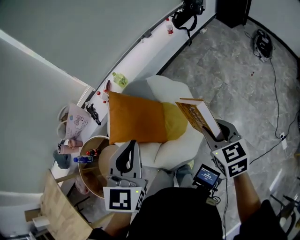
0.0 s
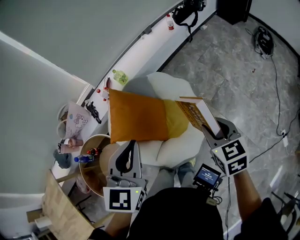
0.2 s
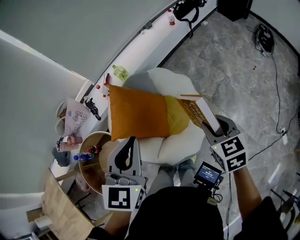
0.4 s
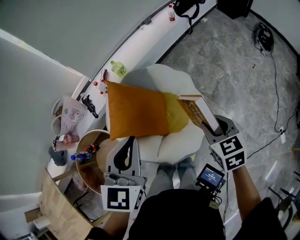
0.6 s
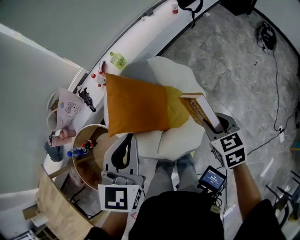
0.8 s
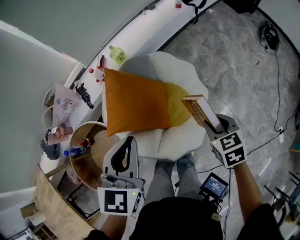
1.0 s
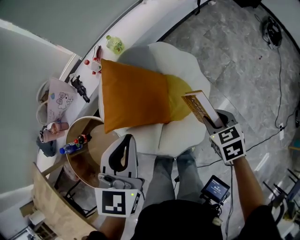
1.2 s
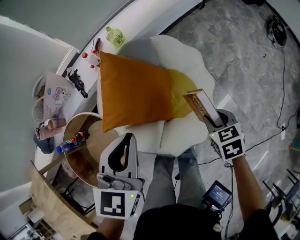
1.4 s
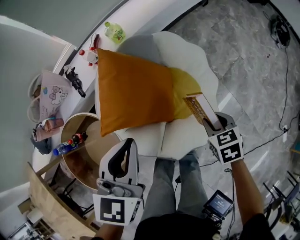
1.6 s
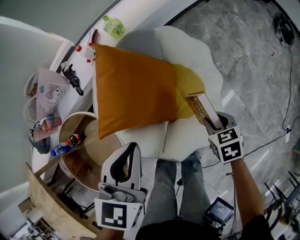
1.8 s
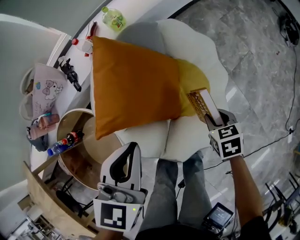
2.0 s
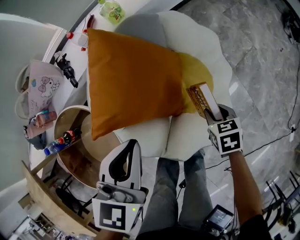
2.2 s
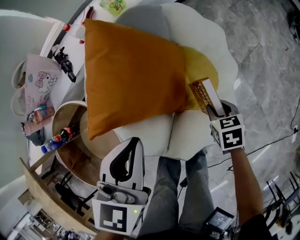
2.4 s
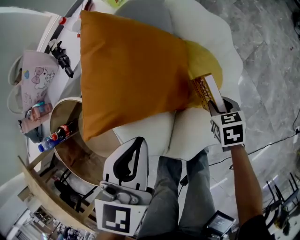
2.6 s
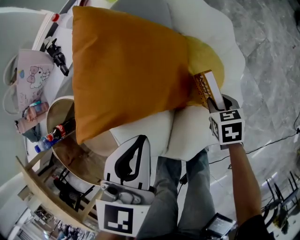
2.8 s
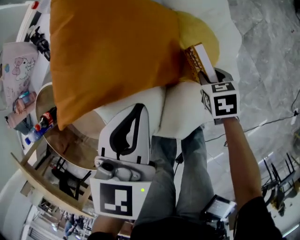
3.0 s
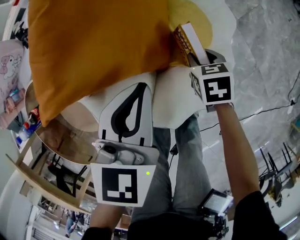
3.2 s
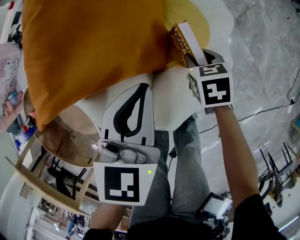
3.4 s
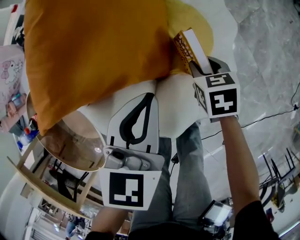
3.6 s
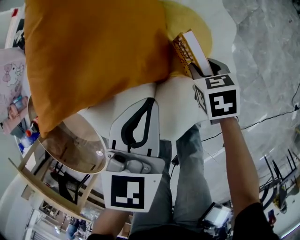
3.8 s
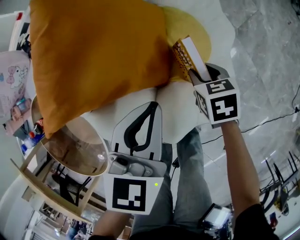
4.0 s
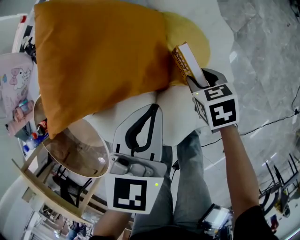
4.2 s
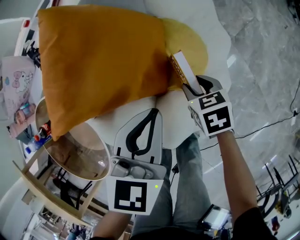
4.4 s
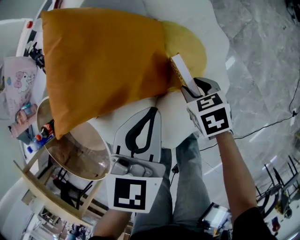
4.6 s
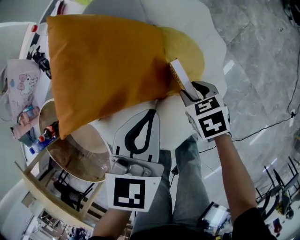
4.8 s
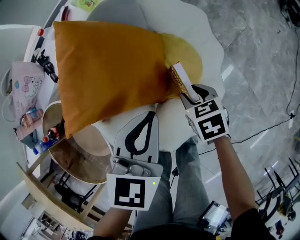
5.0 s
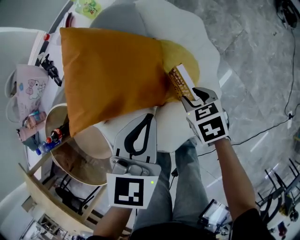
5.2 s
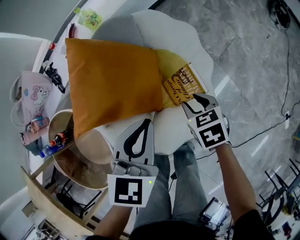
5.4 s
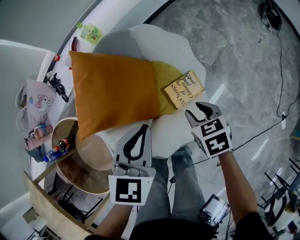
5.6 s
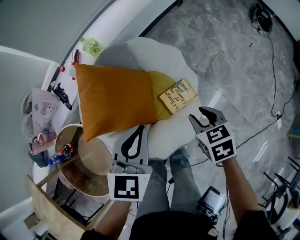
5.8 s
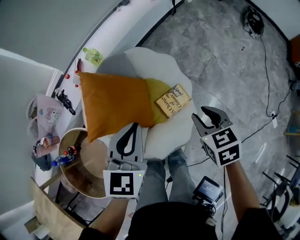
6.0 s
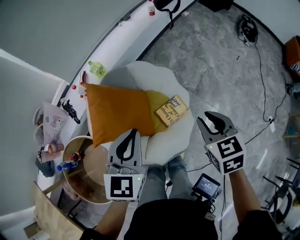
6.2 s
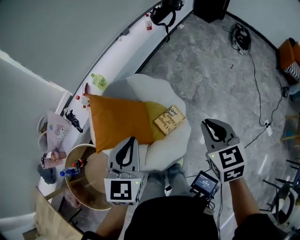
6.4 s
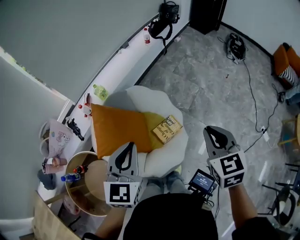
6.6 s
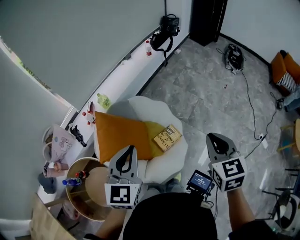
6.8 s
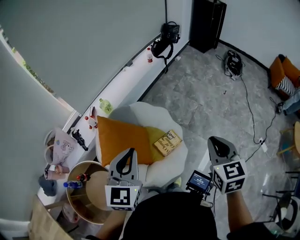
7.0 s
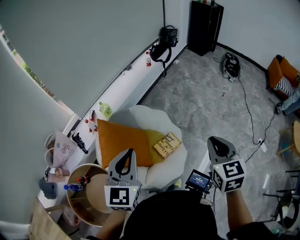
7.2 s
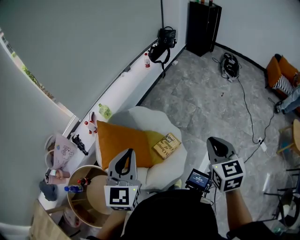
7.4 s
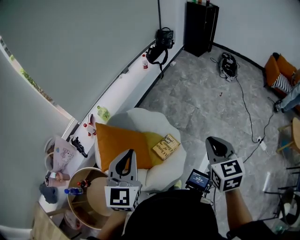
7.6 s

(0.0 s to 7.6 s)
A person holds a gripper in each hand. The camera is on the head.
0.0 s - 1.6 s: Both grippers move downward and to the left, some 30 cm. The right gripper rotates some 30 degrees.
1.6 s - 3.0 s: Both grippers move downward, some 25 cm.
3.0 s - 4.6 s: The left gripper goes some 5 cm to the right.
4.6 s - 6.0 s: Both grippers move upward, about 30 cm. The right gripper turns by approximately 20 degrees.
6.0 s - 7.6 s: Both grippers move upward, roughly 20 cm. The right gripper rotates about 30 degrees, and closes.

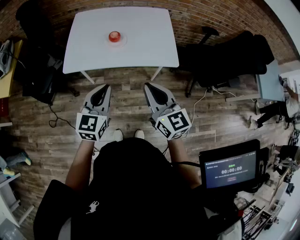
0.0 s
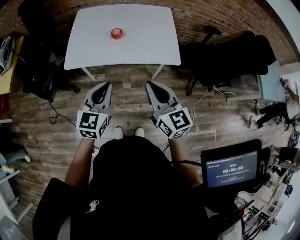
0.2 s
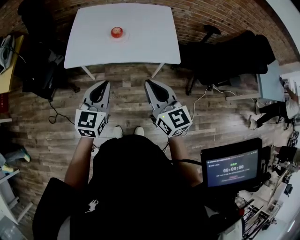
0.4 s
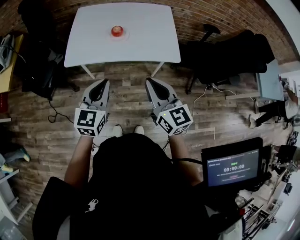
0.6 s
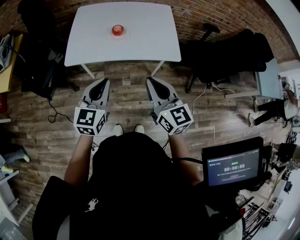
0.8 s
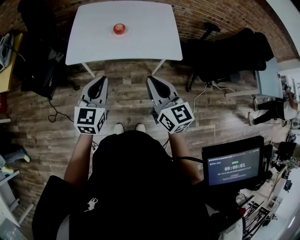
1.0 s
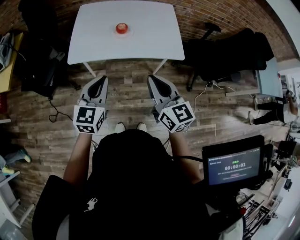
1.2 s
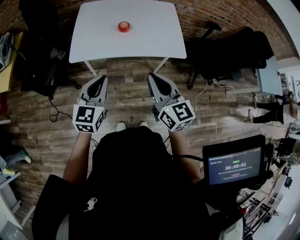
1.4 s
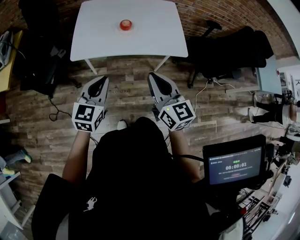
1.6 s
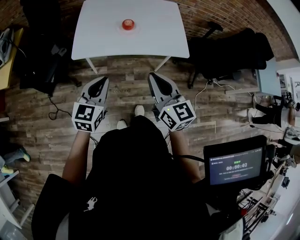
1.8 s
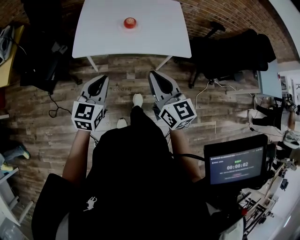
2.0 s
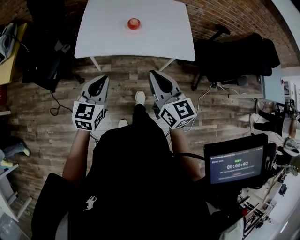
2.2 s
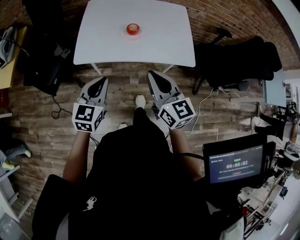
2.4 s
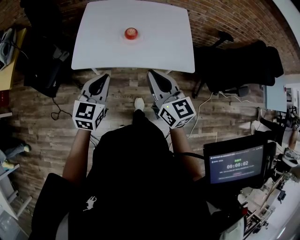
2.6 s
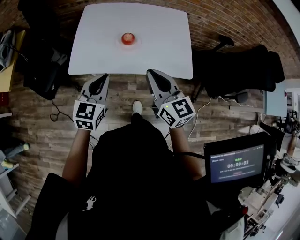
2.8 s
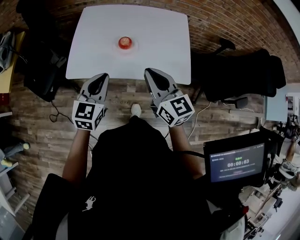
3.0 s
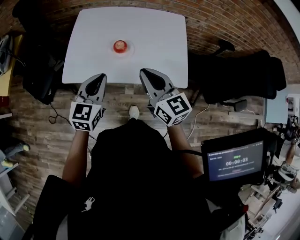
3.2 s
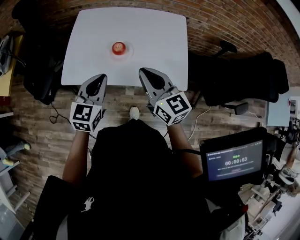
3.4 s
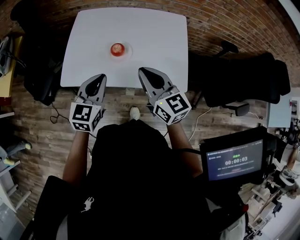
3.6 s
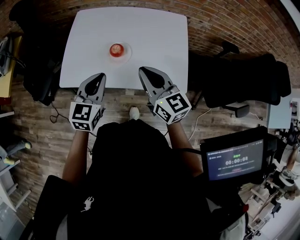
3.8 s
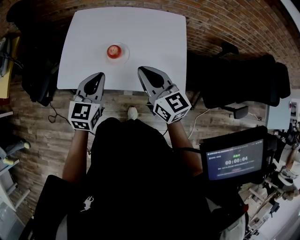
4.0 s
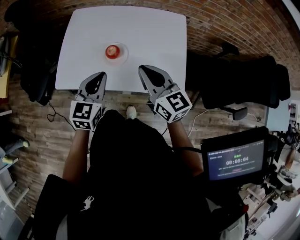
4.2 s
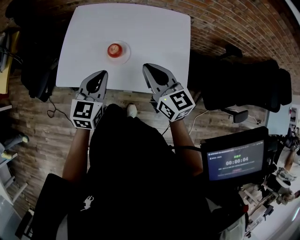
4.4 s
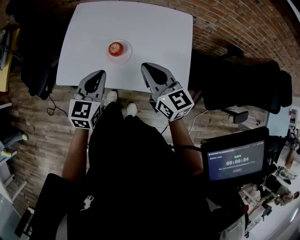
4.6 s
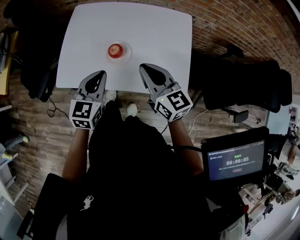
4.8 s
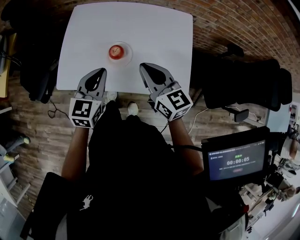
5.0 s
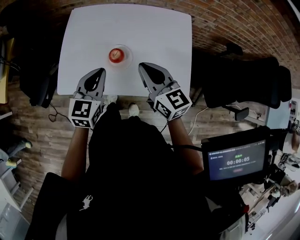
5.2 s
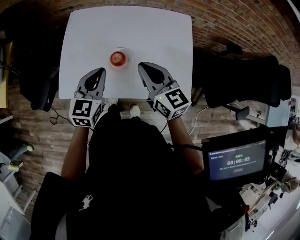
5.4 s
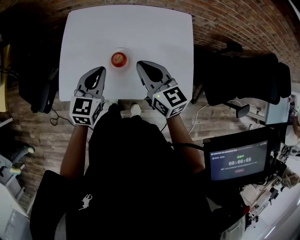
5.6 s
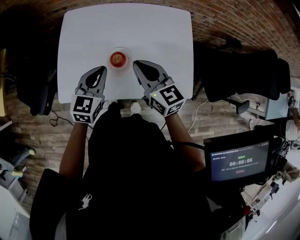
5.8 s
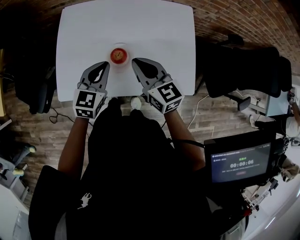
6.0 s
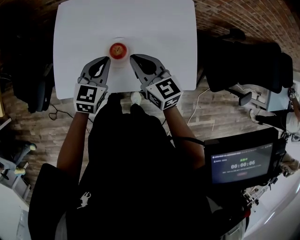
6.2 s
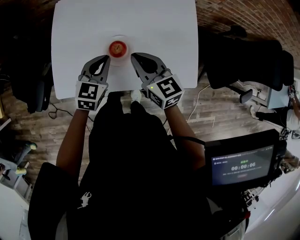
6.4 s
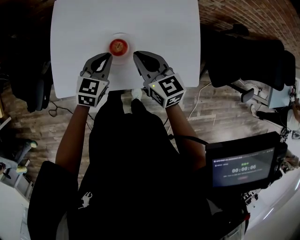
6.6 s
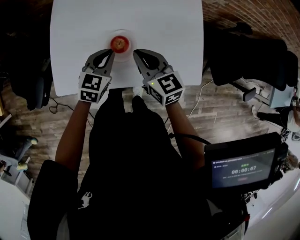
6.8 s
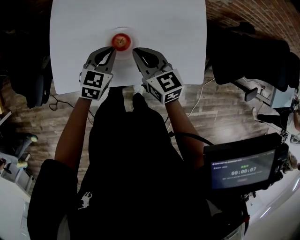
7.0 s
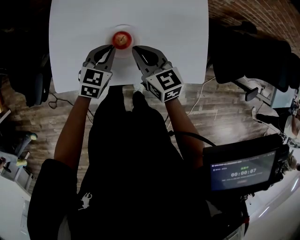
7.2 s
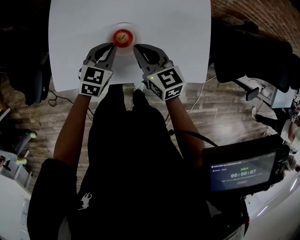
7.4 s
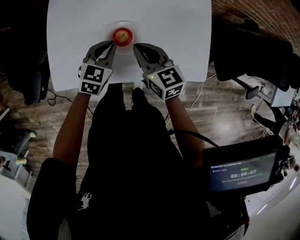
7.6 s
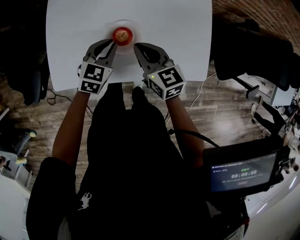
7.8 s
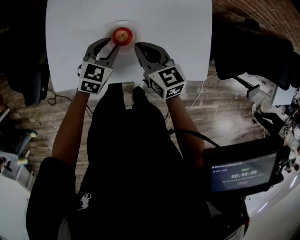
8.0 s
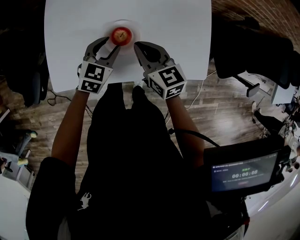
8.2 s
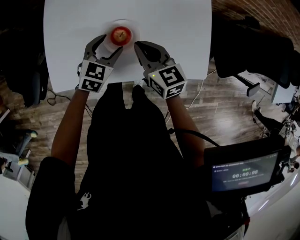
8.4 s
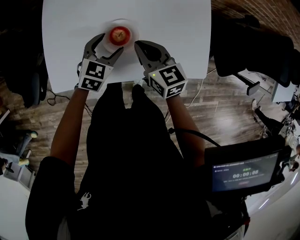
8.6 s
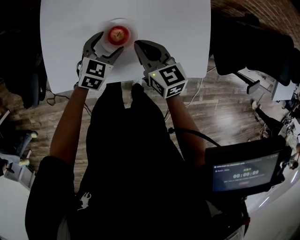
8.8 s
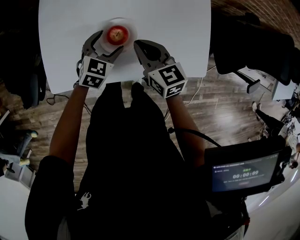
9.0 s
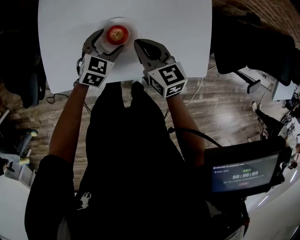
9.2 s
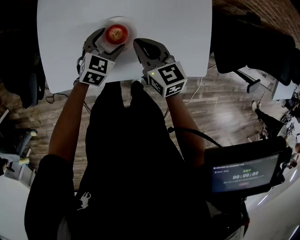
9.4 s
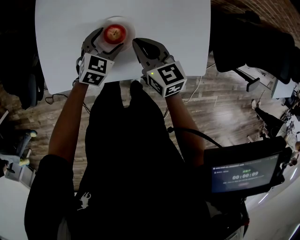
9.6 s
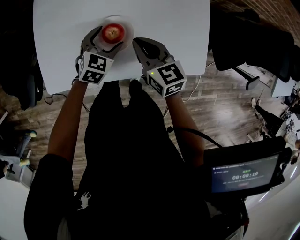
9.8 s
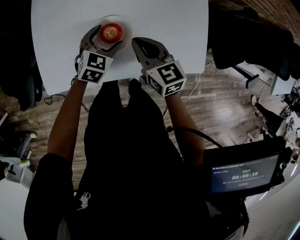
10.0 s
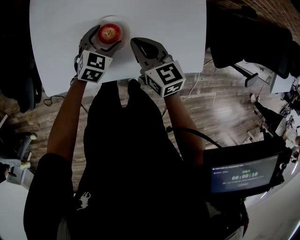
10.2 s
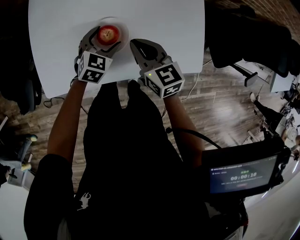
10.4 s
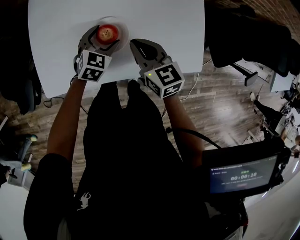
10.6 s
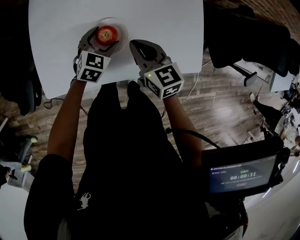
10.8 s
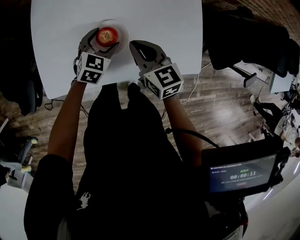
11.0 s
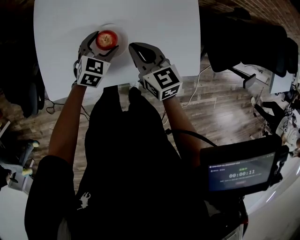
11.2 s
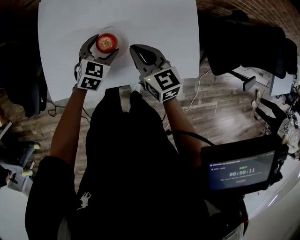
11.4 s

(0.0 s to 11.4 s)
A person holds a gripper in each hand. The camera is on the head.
0.0 s - 1.4 s: Both grippers move to the left, roughly 10 cm.
1.4 s - 2.8 s: Both grippers move forward, approximately 15 cm.
2.8 s - 4.2 s: Both grippers move forward and to the right, some 15 cm.
4.2 s - 5.6 s: The grippers both shift forward by about 10 cm.
5.6 s - 7.2 s: Both grippers travel together downward, about 15 cm.
7.2 s - 8.6 s: The left gripper opens.
8.6 s - 11.4 s: The grippers move only a little.

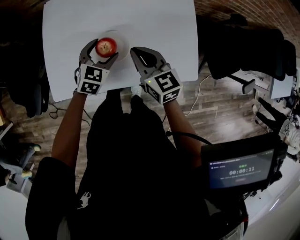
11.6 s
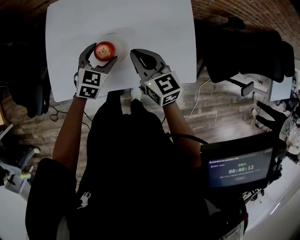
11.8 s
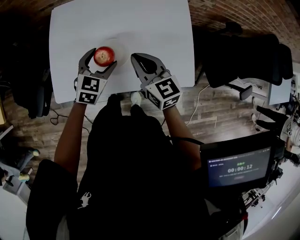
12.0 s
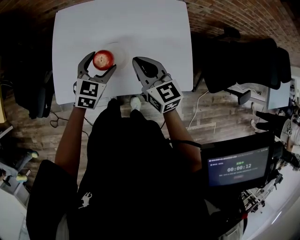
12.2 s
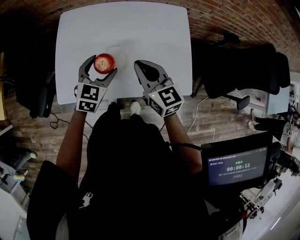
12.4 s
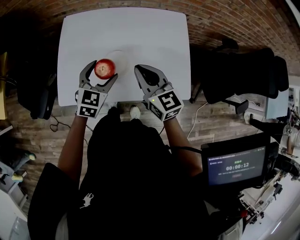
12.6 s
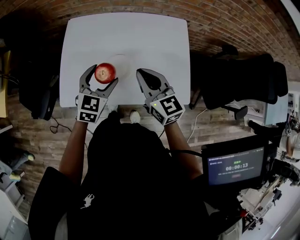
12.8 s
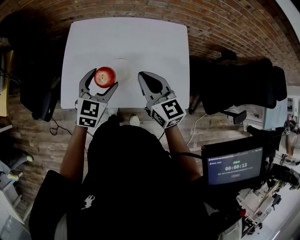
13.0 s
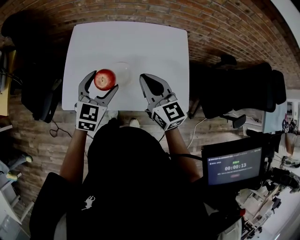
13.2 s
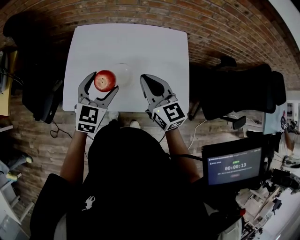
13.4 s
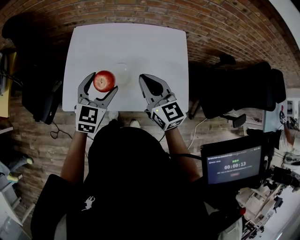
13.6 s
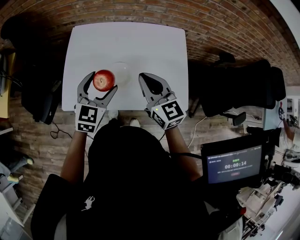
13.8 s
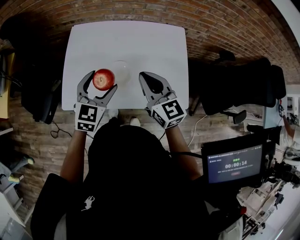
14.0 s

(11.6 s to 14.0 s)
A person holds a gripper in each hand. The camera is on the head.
11.6 s - 12.8 s: The left gripper goes approximately 15 cm upward and backward, while the right gripper goes some 10 cm upward.
12.8 s - 14.0 s: The grippers move only a little.

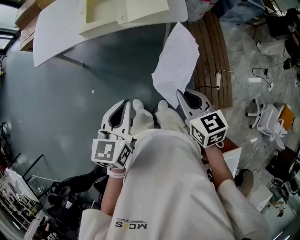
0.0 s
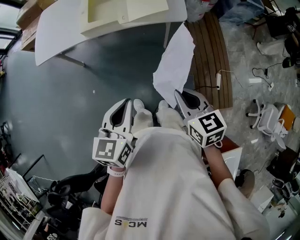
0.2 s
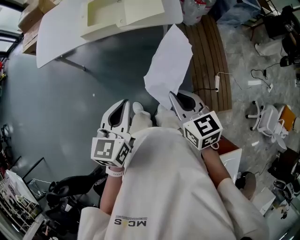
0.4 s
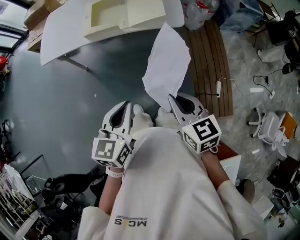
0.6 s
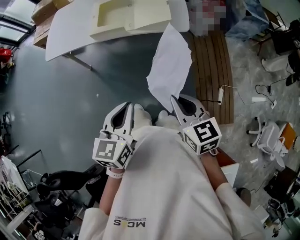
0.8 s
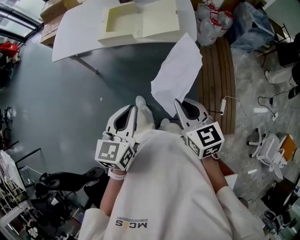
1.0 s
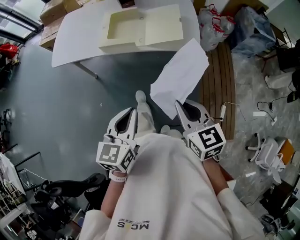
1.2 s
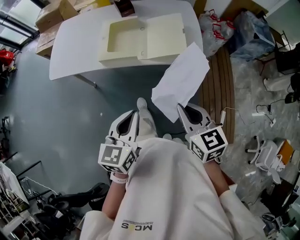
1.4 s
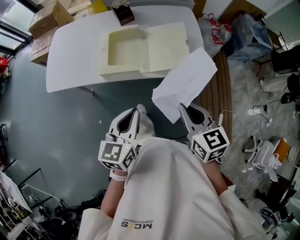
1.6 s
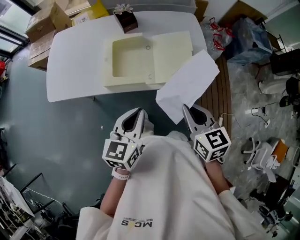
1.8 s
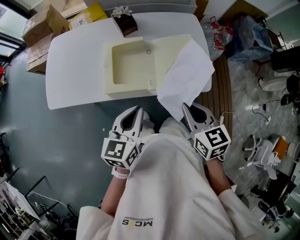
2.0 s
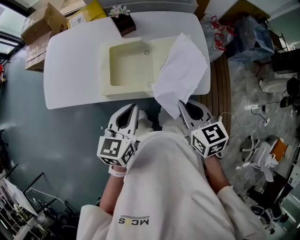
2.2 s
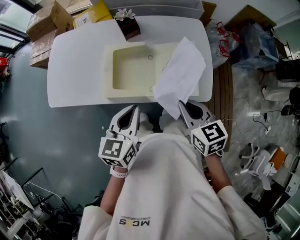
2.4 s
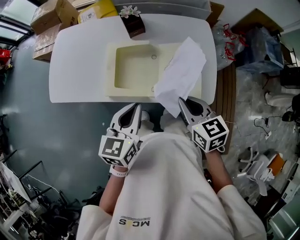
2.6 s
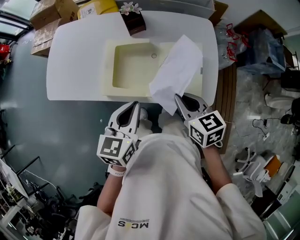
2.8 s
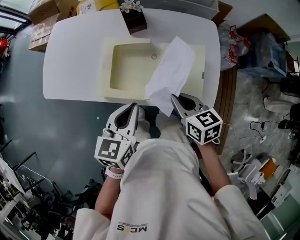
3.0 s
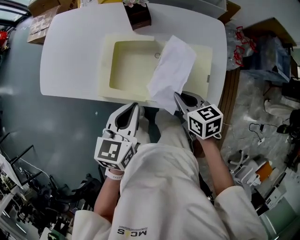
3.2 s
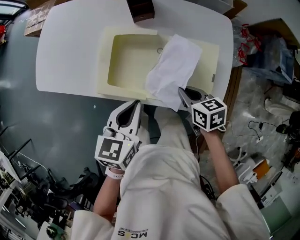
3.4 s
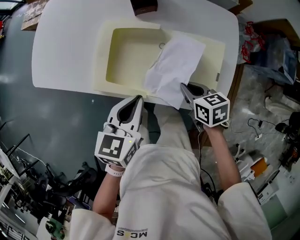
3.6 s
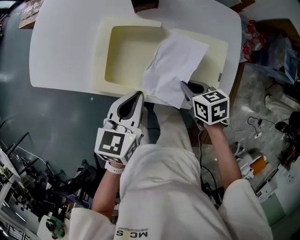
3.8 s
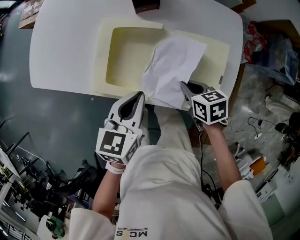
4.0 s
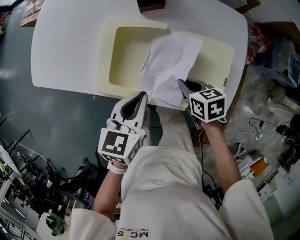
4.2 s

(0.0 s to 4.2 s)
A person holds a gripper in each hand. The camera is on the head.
0.0 s - 1.4 s: Both grippers move forward, approximately 10 cm.
1.4 s - 2.8 s: The grippers both shift forward by about 30 cm.
2.8 s - 4.2 s: The right gripper goes some 20 cm downward and forward, and swivels about 30 degrees. The left gripper shifts approximately 15 cm downward and forward.
